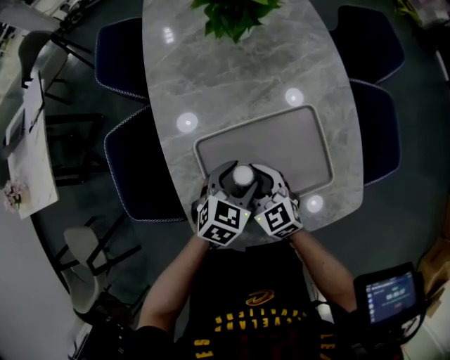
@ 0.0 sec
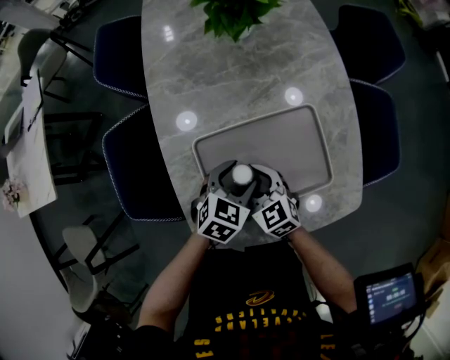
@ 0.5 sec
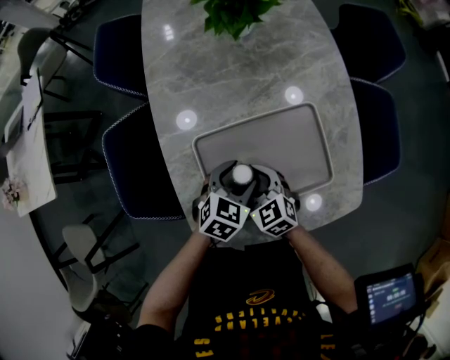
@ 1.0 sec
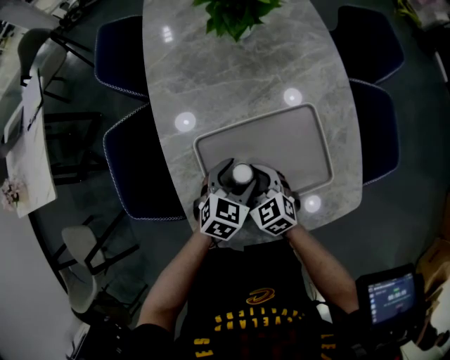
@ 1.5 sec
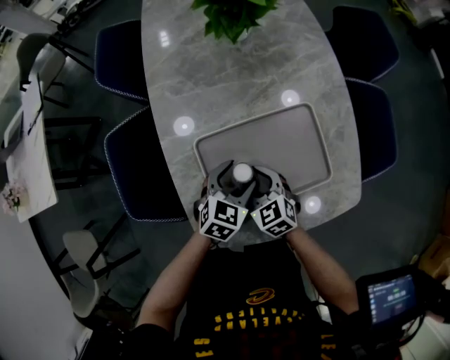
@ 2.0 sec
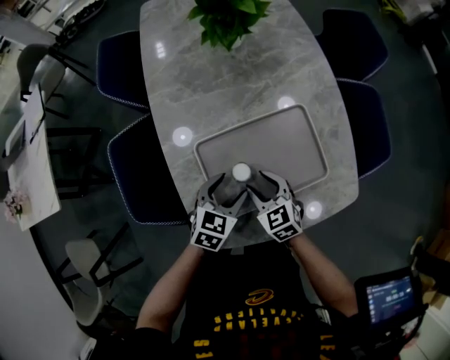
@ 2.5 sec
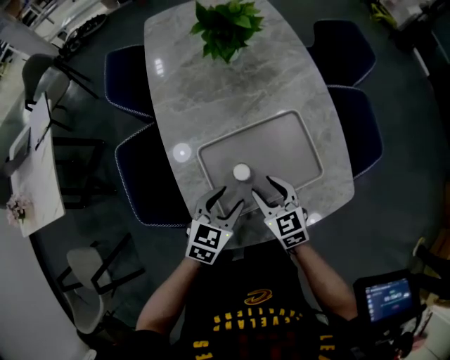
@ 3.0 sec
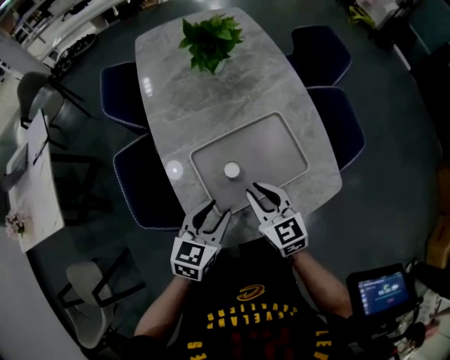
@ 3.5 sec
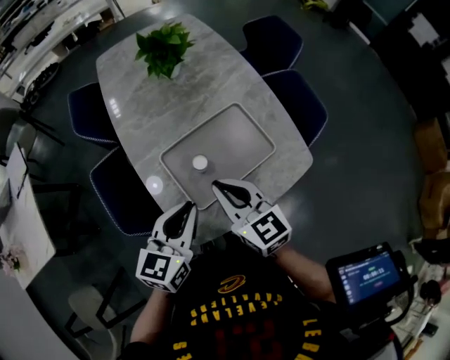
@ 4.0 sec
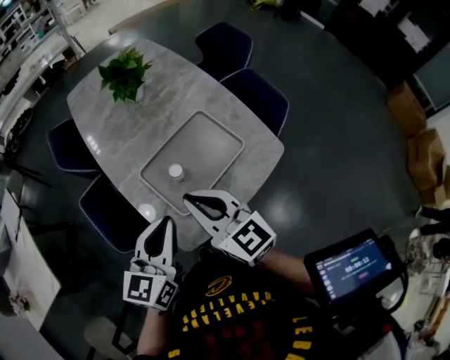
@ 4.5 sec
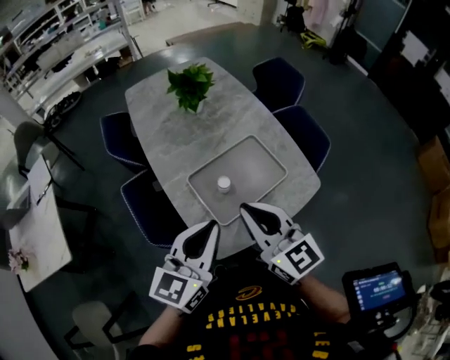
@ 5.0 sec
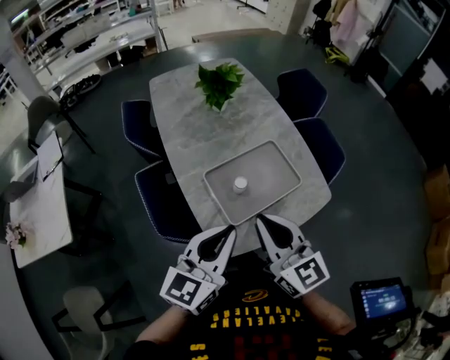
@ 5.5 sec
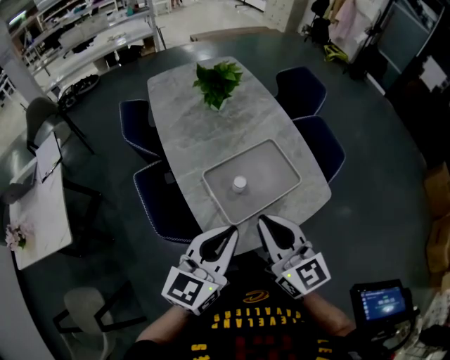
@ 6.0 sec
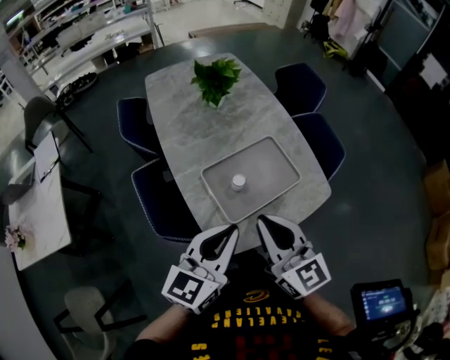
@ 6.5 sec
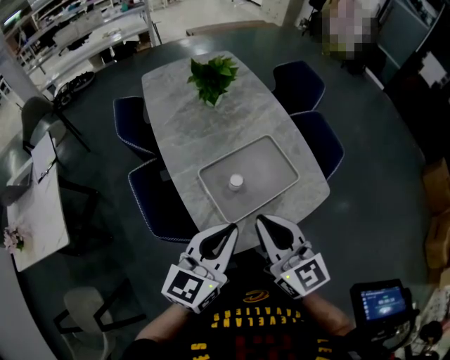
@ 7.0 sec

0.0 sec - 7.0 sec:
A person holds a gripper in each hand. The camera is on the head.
0.0 sec - 2.0 sec: There are only small adjustments of the grippers.
2.0 sec - 3.5 sec: The right gripper moves upward, about 15 cm, swivels about 30 degrees, and closes its fingers; the left gripper is displaced upward and backward by some 15 cm, and closes.
3.5 sec - 5.0 sec: The grippers both shift upward and backward by roughly 25 cm. The right gripper rotates approximately 20 degrees, while the left gripper changes its angle by about 30 degrees, and closes.
5.0 sec - 7.0 sec: The grippers stay close to where they were, moving slightly.

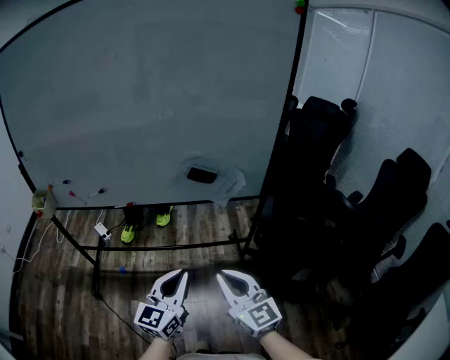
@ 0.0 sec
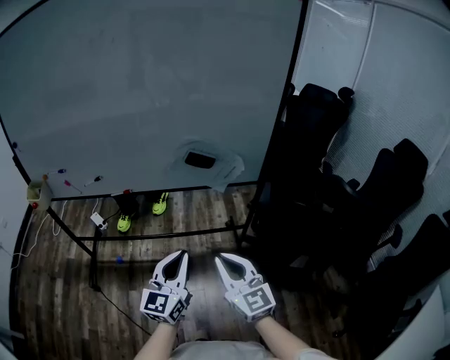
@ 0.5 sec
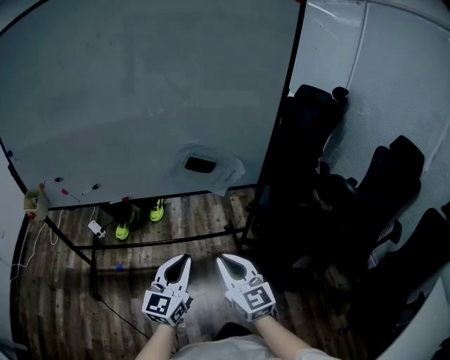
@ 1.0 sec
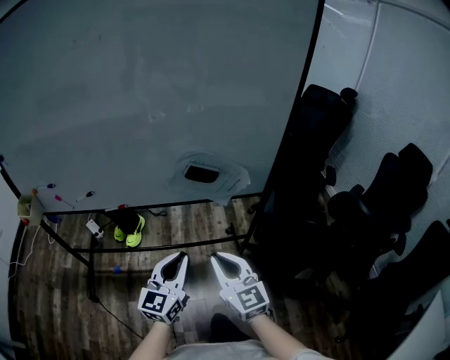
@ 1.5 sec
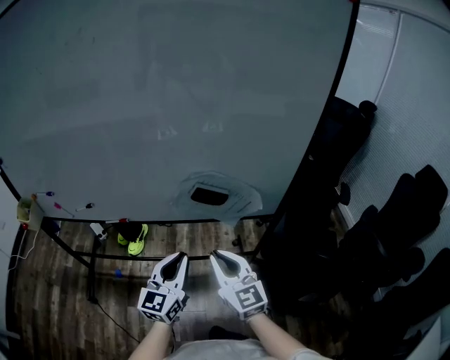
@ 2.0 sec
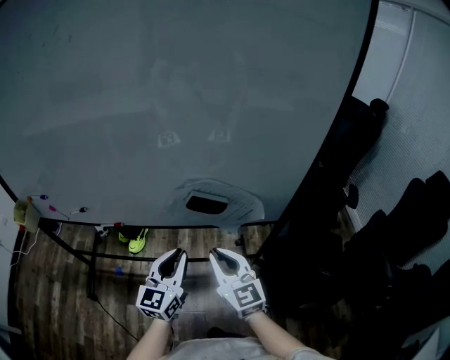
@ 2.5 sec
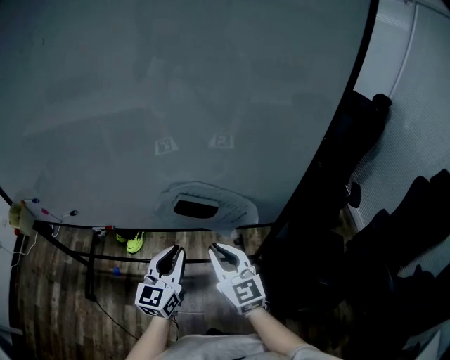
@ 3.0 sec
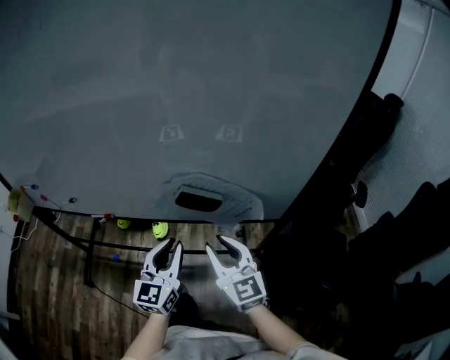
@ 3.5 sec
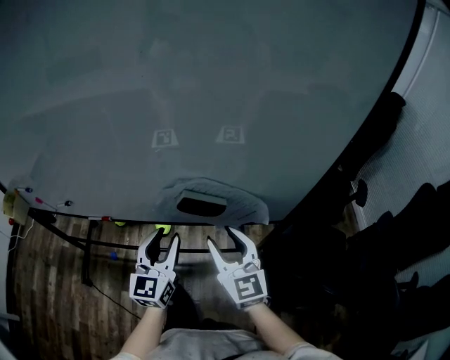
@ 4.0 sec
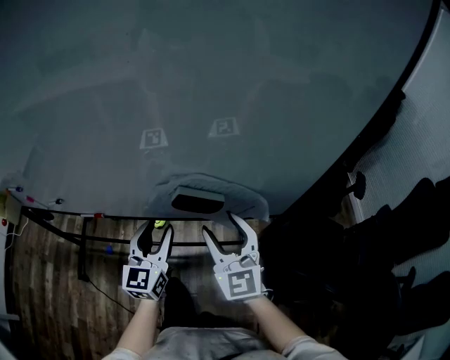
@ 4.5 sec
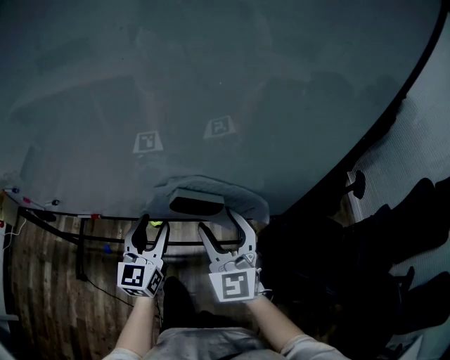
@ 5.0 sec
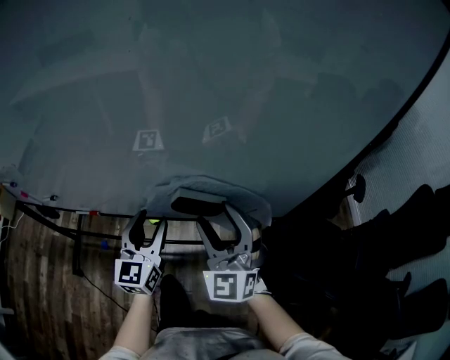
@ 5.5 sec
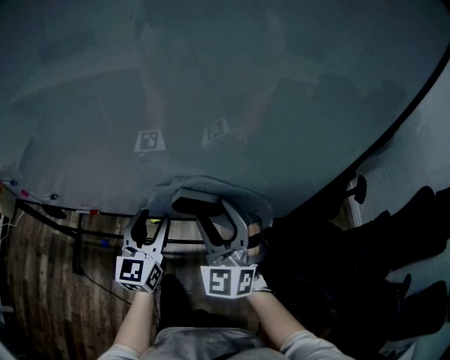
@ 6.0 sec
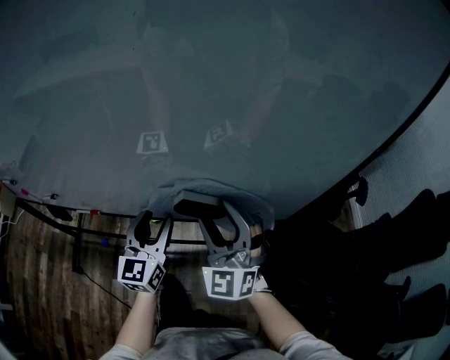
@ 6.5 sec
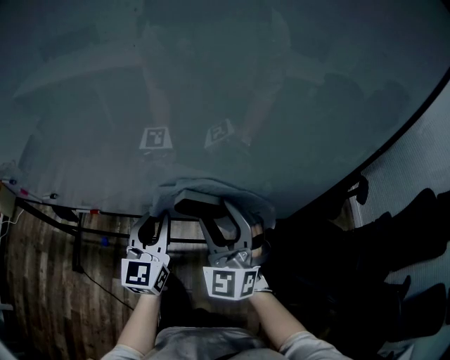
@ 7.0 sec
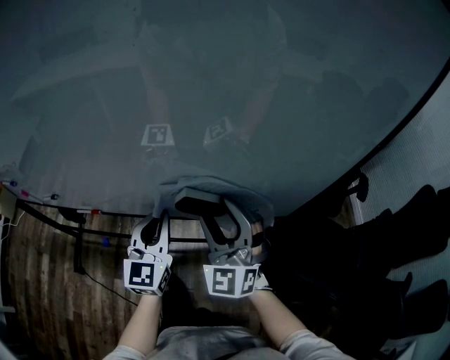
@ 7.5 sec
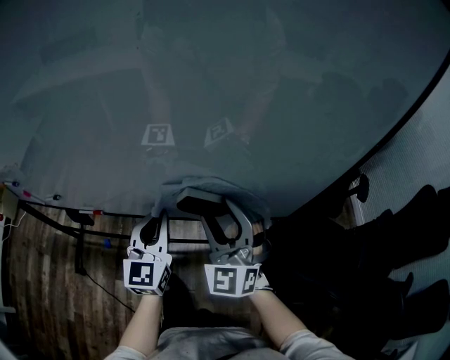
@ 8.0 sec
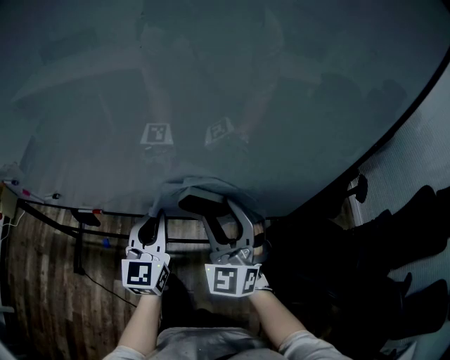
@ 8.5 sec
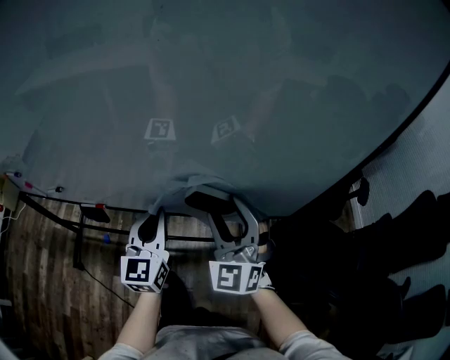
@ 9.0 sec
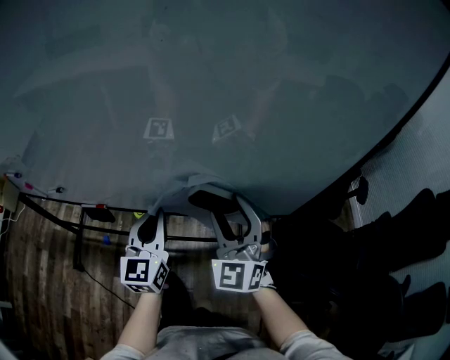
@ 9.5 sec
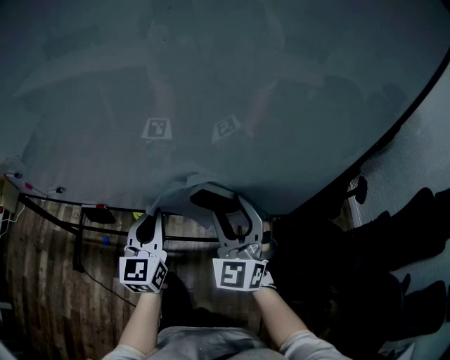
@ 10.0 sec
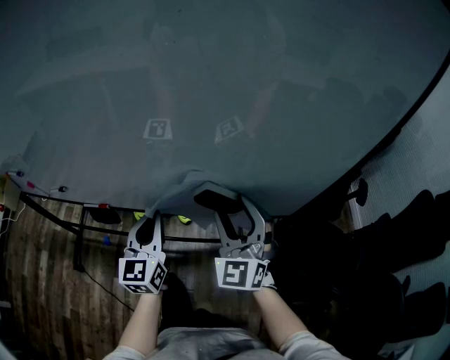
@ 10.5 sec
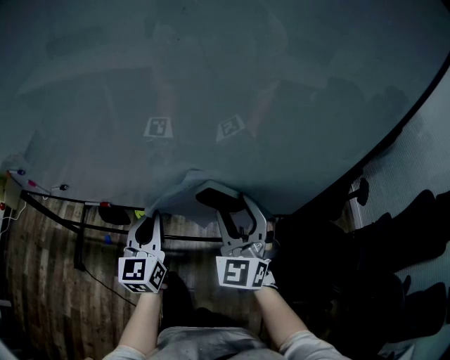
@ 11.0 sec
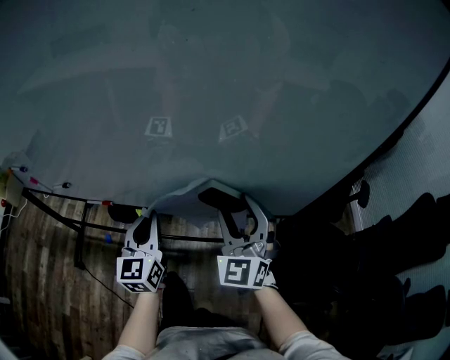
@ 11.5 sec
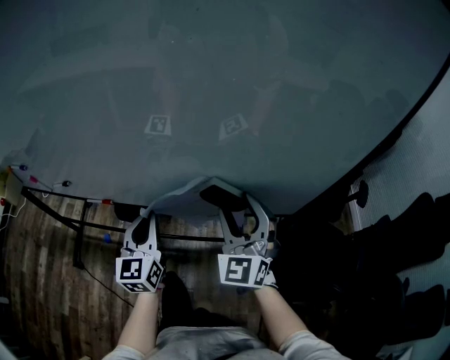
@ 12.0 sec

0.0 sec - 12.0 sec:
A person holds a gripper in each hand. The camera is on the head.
0.0 sec - 2.0 sec: Both grippers move forward, some 25 cm.
2.0 sec - 4.0 sec: The left gripper moves forward, roughly 15 cm, and opens up. Meanwhile the right gripper is displaced forward and to the right by approximately 15 cm, and opens its fingers.
4.0 sec - 6.0 sec: Both grippers move forward, some 5 cm. The right gripper rotates some 40 degrees.
6.0 sec - 8.0 sec: The left gripper closes up.
8.0 sec - 10.0 sec: There are only small adjustments of the grippers.
10.0 sec - 12.0 sec: The grippers stay close to where they were, moving slightly.

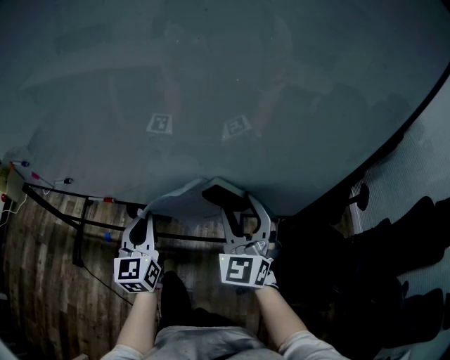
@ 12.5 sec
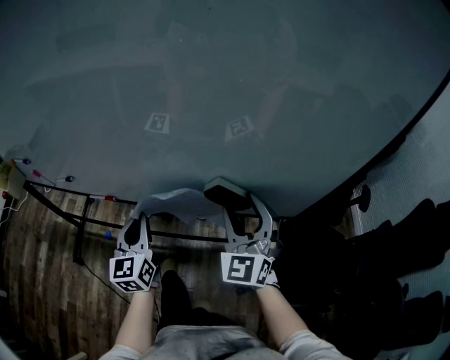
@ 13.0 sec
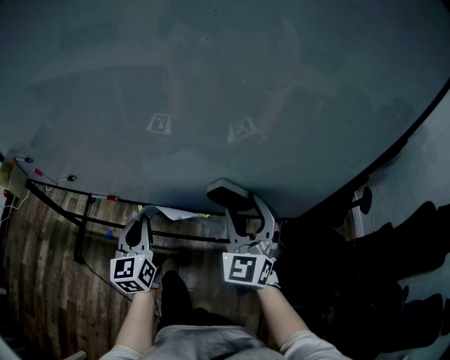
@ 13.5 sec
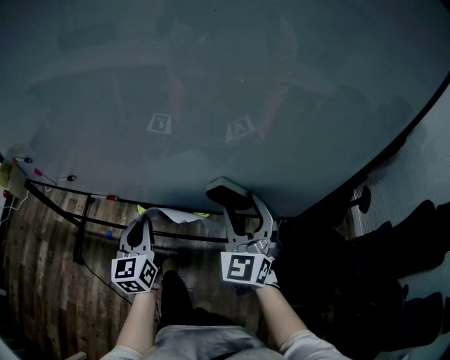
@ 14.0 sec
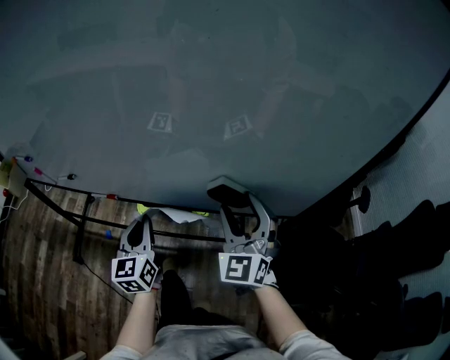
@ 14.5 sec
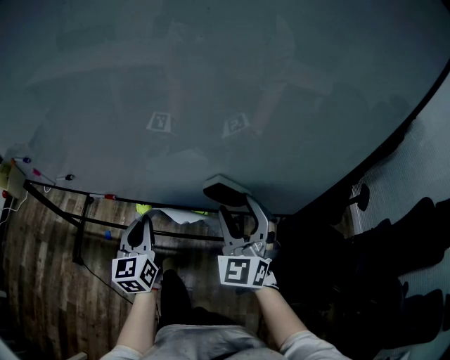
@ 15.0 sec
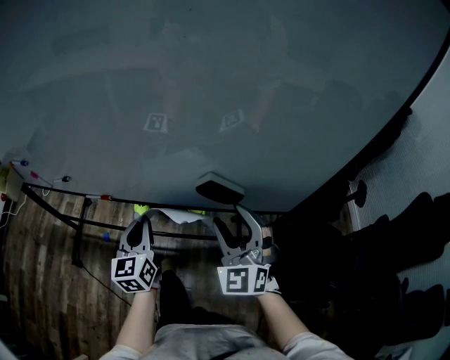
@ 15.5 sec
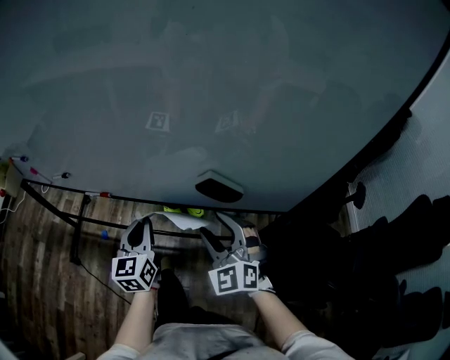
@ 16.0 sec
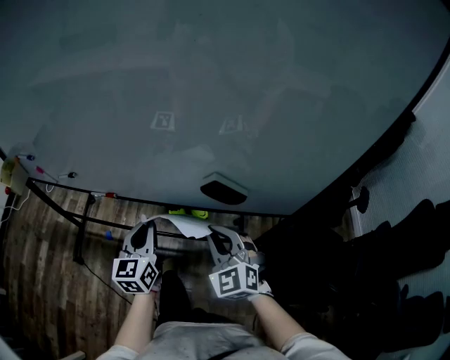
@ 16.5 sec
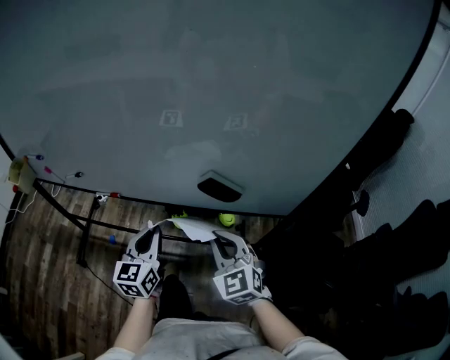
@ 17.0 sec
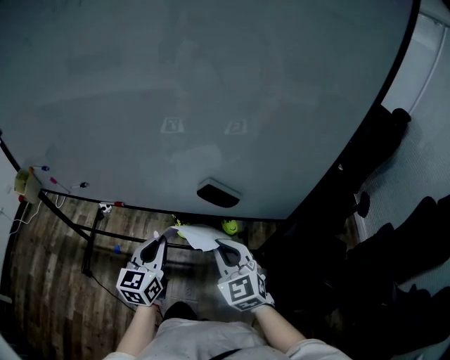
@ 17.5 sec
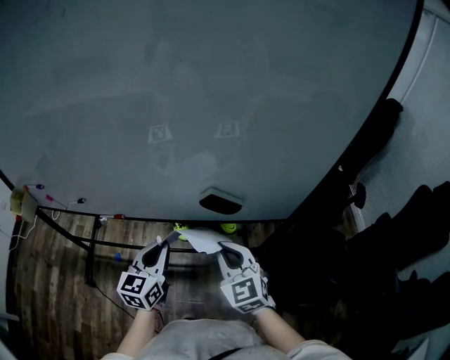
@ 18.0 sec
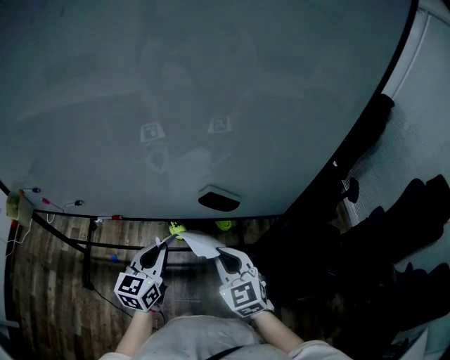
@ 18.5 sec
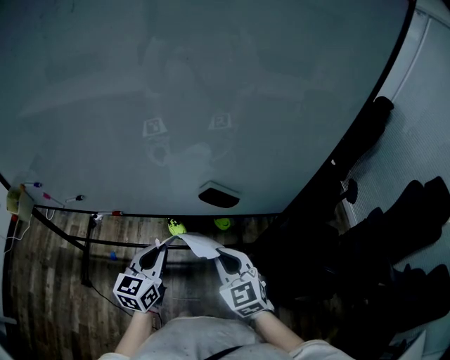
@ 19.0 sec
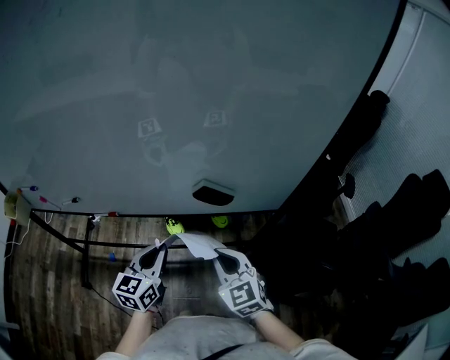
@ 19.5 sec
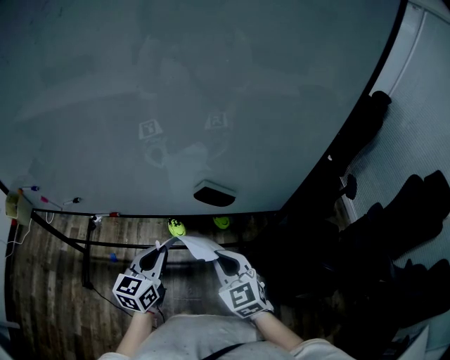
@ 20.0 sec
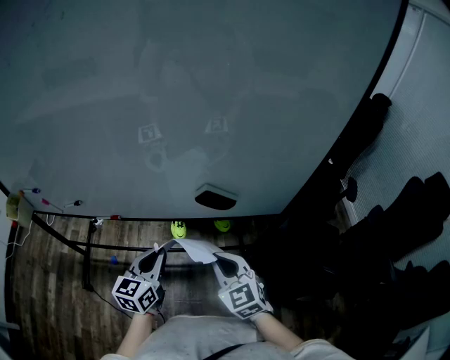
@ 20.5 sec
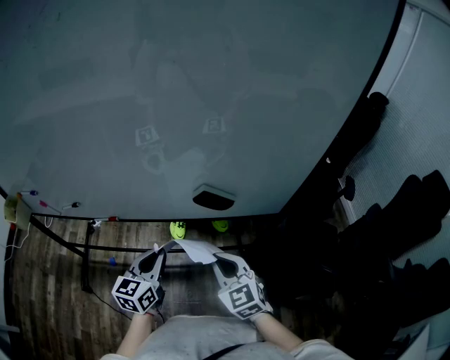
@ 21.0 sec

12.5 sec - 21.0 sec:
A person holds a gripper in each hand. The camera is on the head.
12.5 sec - 14.5 sec: There are only small adjustments of the grippers.
14.5 sec - 16.5 sec: The right gripper is displaced downward and backward by some 10 cm, changes its angle by about 20 degrees, and closes up.
16.5 sec - 19.0 sec: Both grippers move backward, some 5 cm. The left gripper turns by about 20 degrees; the right gripper turns by approximately 20 degrees.
19.0 sec - 21.0 sec: There are only small adjustments of the grippers.
